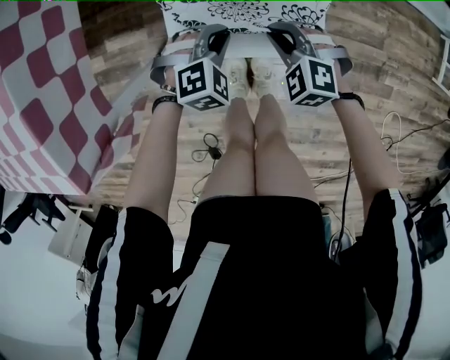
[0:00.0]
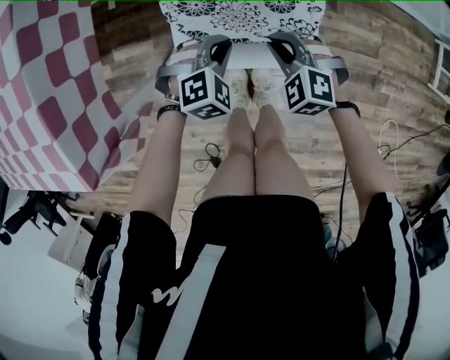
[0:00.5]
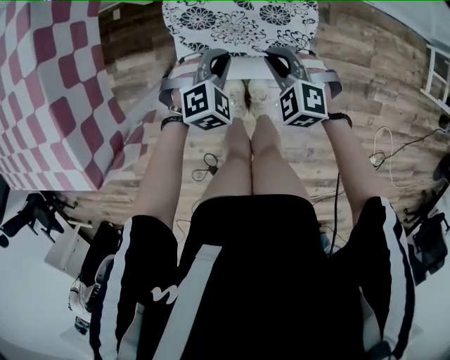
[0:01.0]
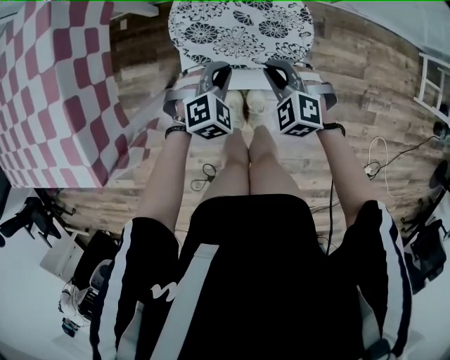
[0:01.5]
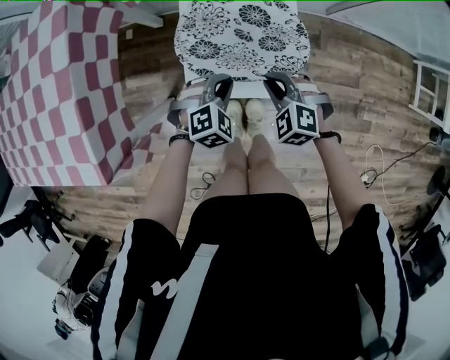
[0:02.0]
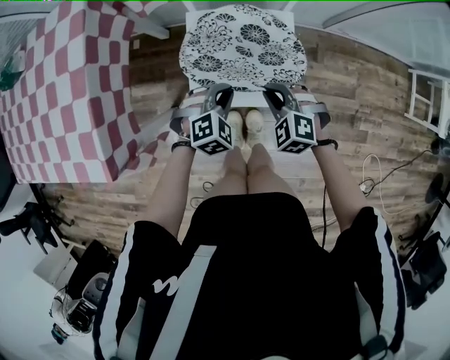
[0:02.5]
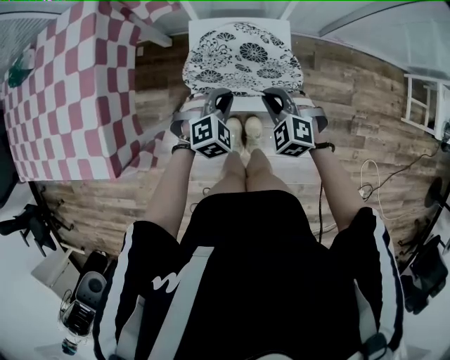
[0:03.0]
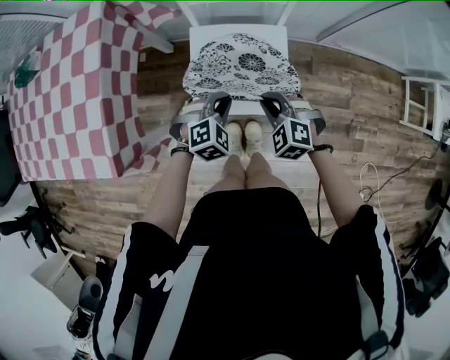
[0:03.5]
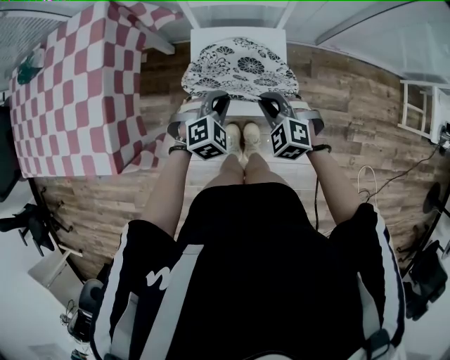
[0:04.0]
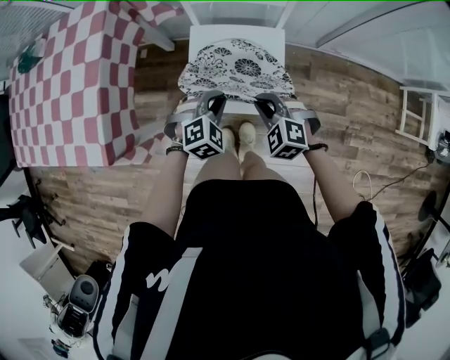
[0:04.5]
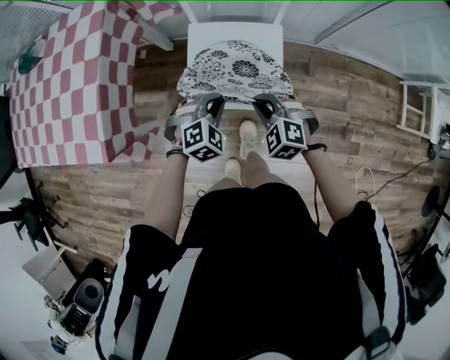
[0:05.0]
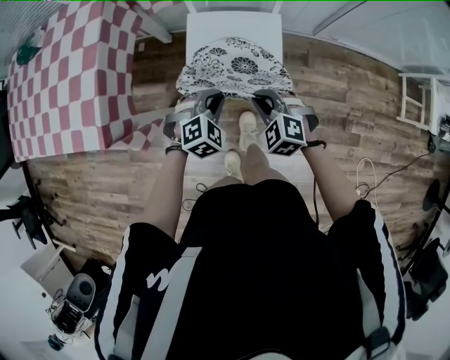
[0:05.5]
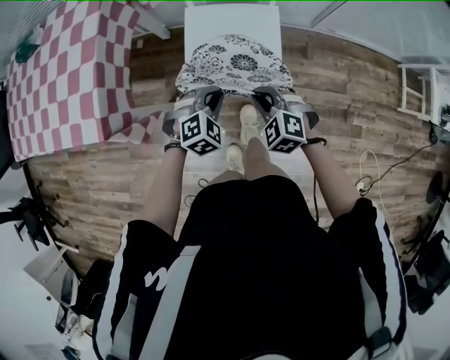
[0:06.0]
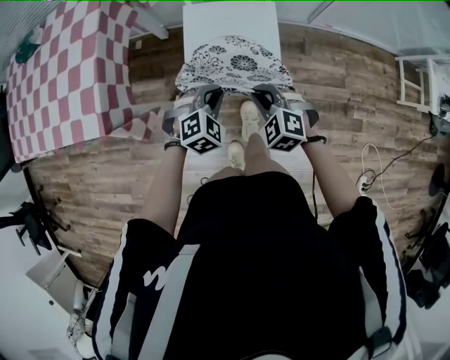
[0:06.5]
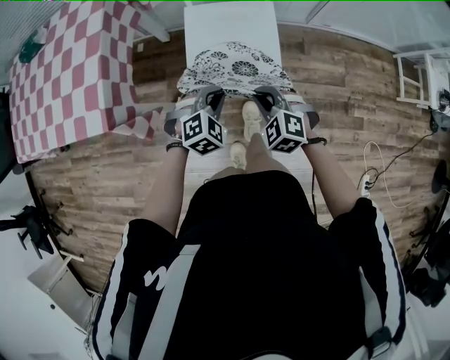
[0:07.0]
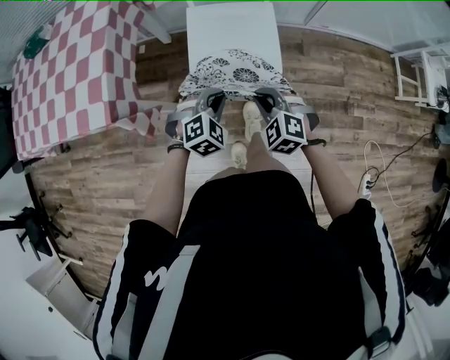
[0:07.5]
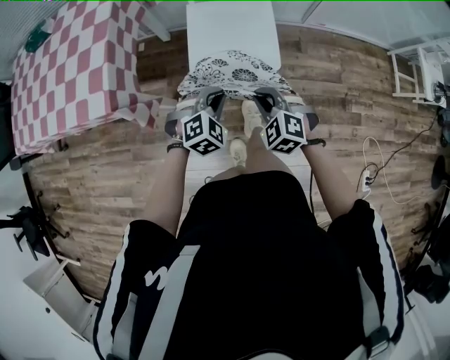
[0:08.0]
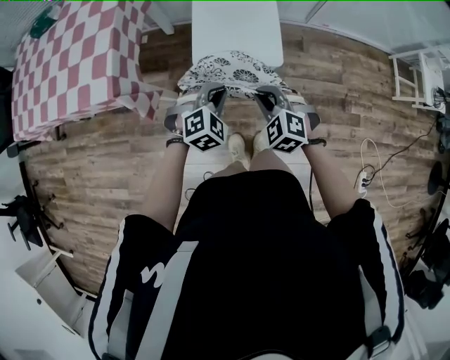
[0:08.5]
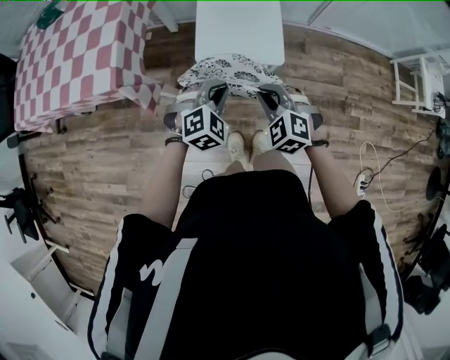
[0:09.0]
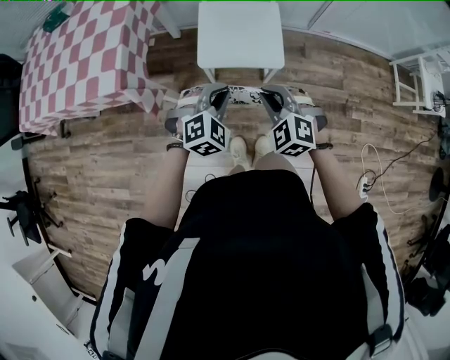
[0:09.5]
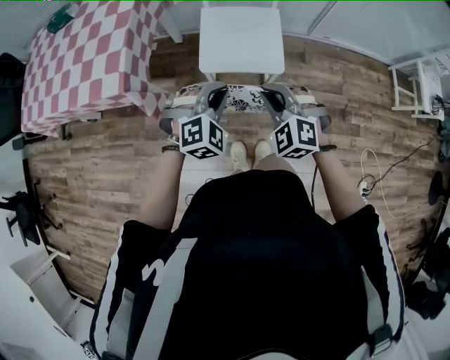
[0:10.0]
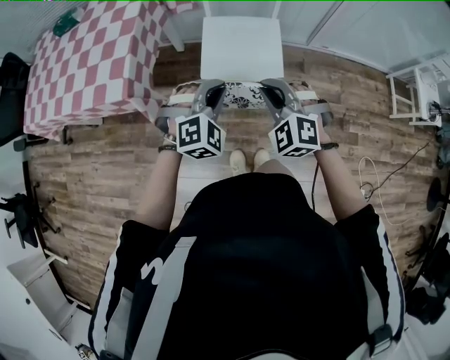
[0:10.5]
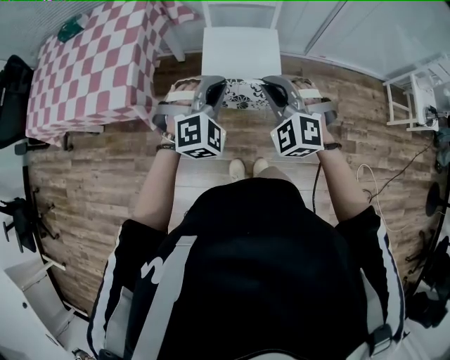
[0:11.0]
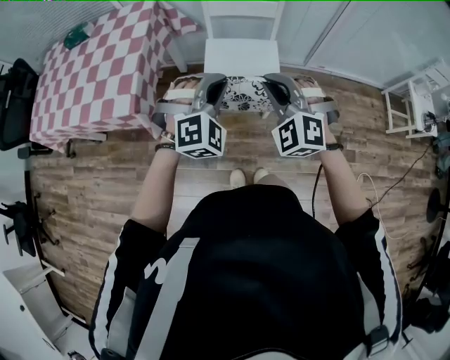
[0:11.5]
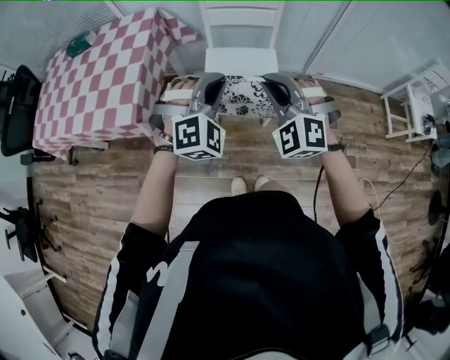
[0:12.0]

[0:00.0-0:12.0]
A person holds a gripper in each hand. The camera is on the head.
0:00.0 to 0:02.0: The two grippers go about 10 cm upward.
0:02.0 to 0:04.0: The grippers both shift upward by approximately 10 cm.
0:04.0 to 0:06.0: The grippers both shift backward by roughly 10 cm.
0:06.0 to 0:08.0: Both grippers travel together backward, roughly 10 cm.
0:08.0 to 0:10.0: The two grippers go approximately 10 cm upward.
0:10.0 to 0:12.0: The two grippers go some 15 cm upward and forward. The right gripper swivels some 20 degrees.

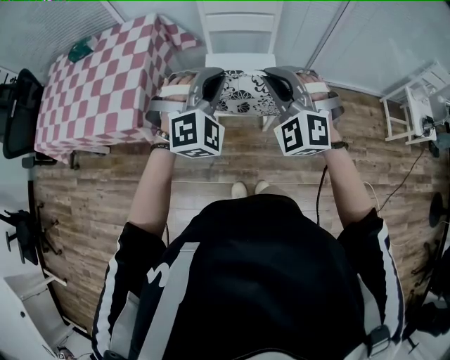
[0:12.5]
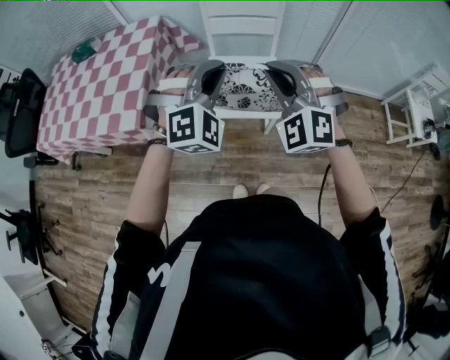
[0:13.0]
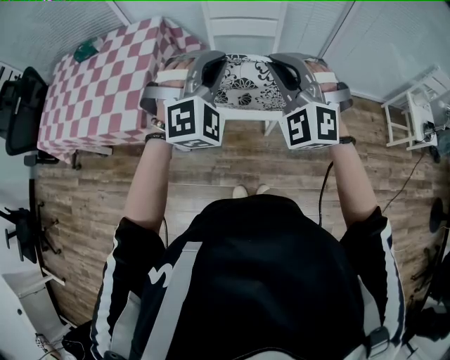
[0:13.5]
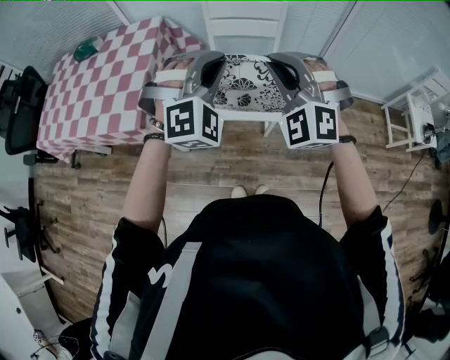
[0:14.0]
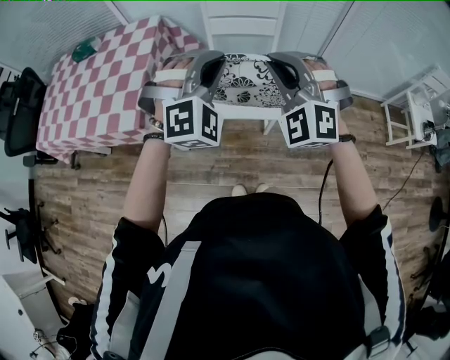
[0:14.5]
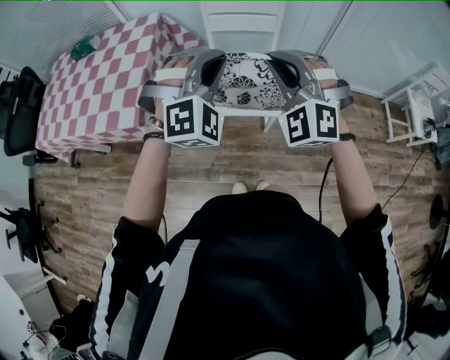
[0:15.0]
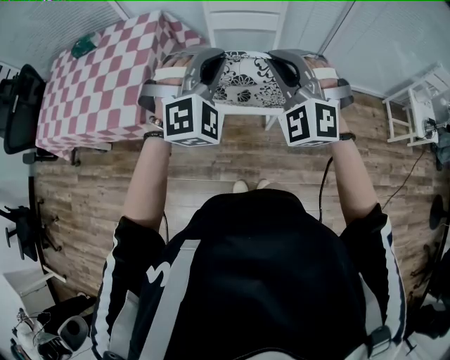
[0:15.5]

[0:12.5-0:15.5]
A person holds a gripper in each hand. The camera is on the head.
0:12.5 to 0:14.0: The two grippers go roughly 5 cm upward.
0:14.0 to 0:15.5: Both grippers stay put.

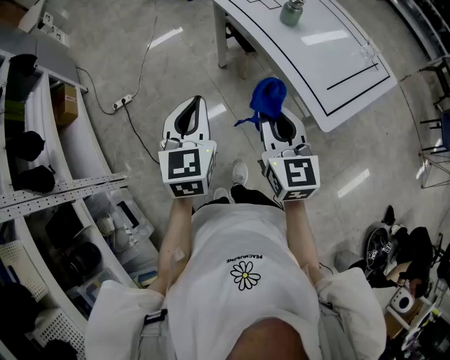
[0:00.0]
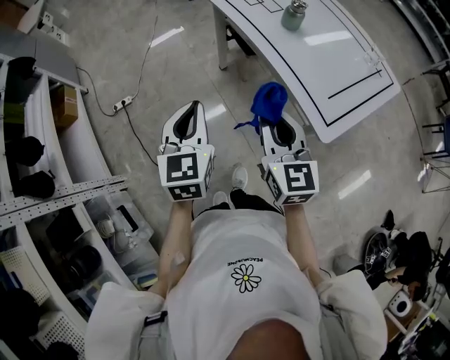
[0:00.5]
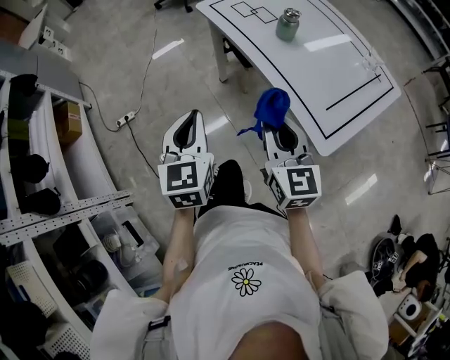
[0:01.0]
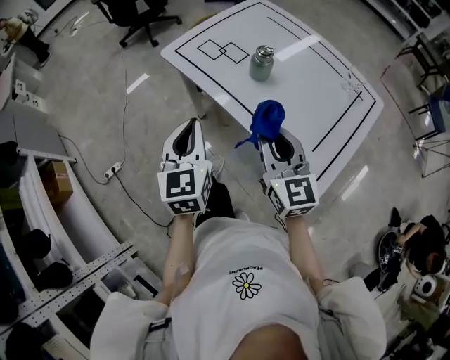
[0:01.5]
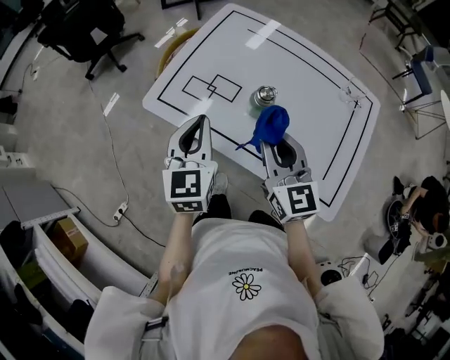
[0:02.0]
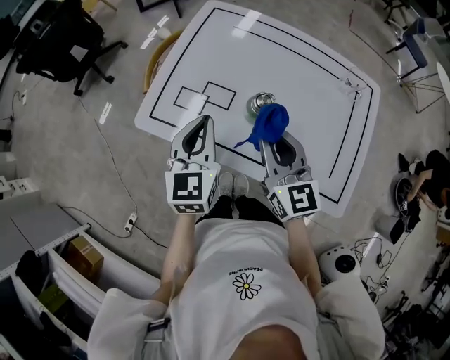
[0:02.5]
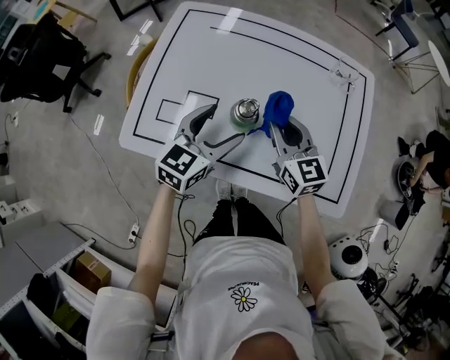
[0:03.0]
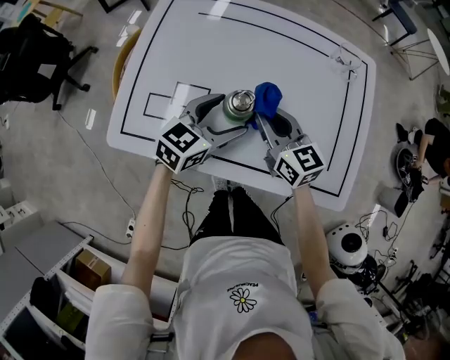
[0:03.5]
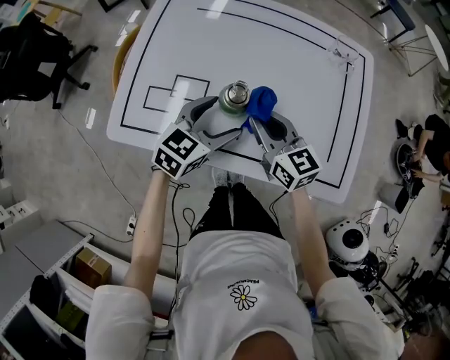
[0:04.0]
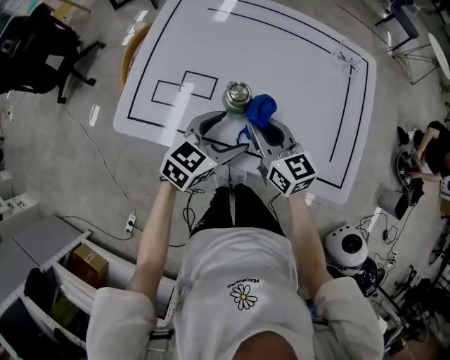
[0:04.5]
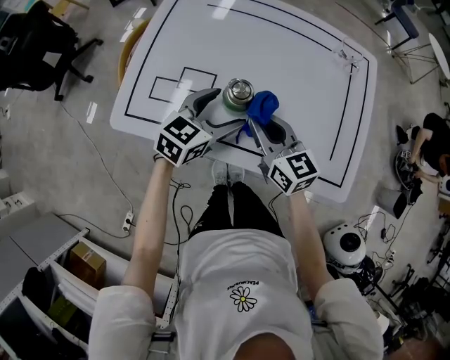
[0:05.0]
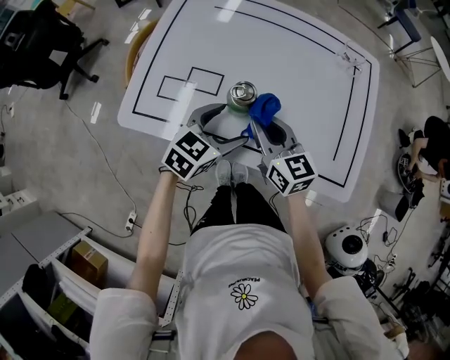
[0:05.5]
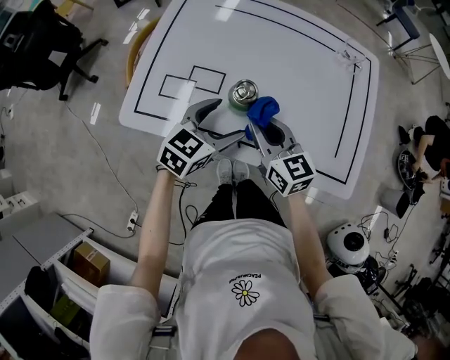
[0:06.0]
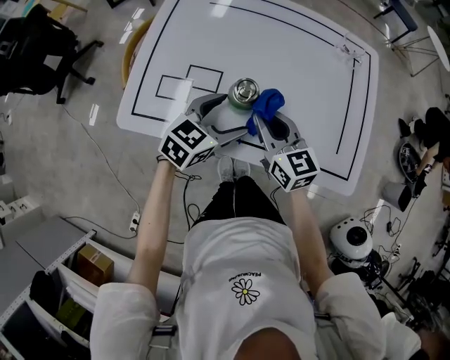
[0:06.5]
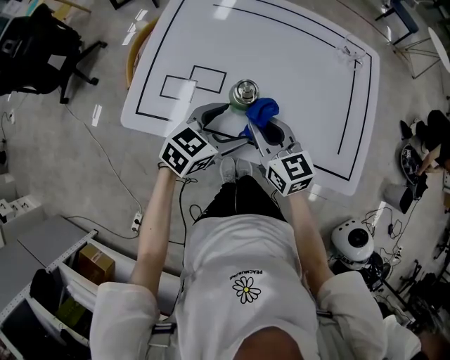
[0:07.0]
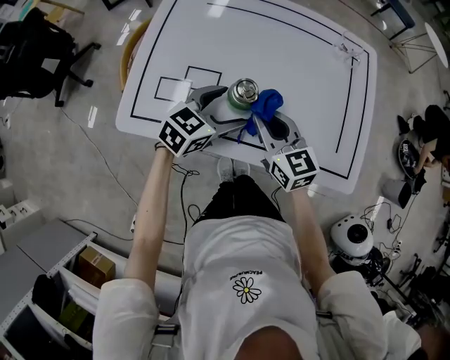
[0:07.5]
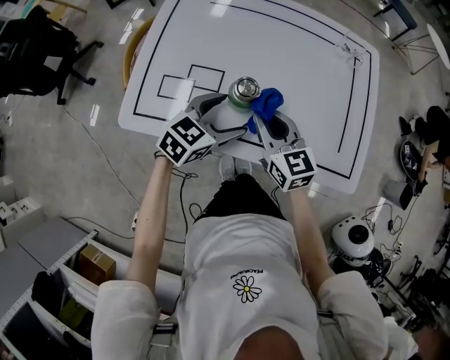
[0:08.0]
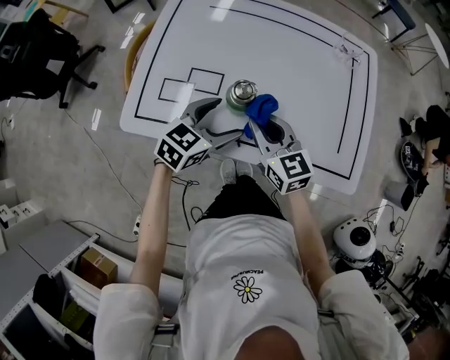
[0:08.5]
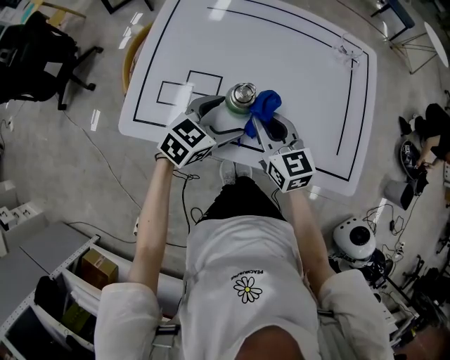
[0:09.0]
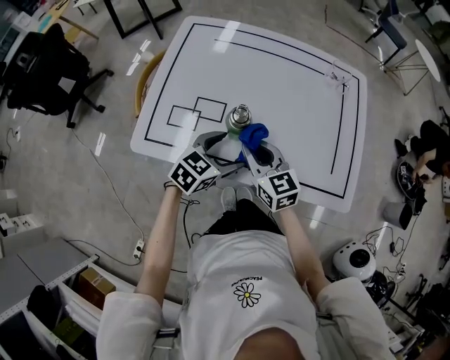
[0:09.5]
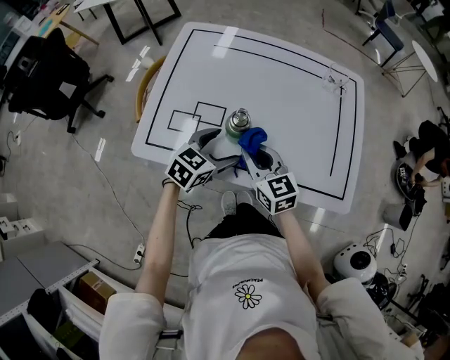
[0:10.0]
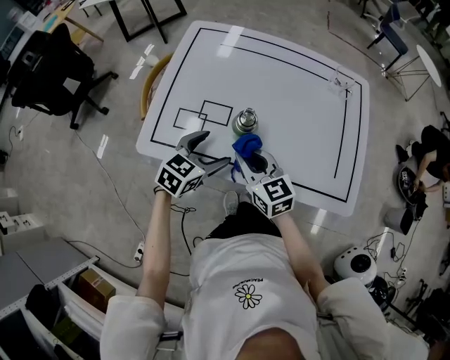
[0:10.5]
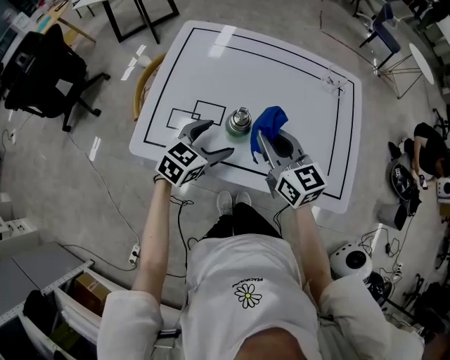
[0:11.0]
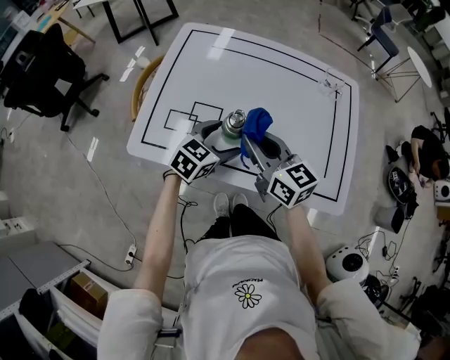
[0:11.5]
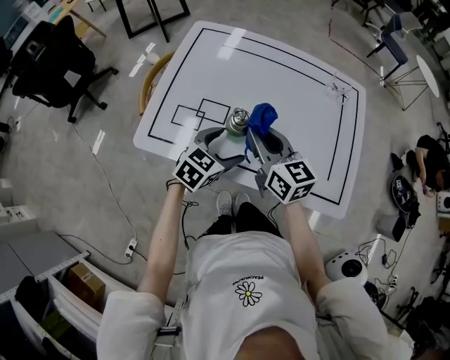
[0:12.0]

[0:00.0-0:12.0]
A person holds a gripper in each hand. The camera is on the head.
0:00.0 to 0:02.0: The left gripper changes place by about 40 cm, and rotates approximately 30 degrees. The right gripper shifts by roughly 35 cm, and turns by some 20 degrees.
0:02.0 to 0:04.0: The left gripper moves about 20 cm, swivels about 60 degrees, and opens up; the right gripper heads downward, covering about 15 cm.
0:04.0 to 0:06.0: The left gripper goes forward and backward, roughly 5 cm each way, reversing 2 times. Meanwhile the right gripper changes place by roughly 5 cm.
0:06.0 to 0:10.0: The grippers make only small movements.
0:10.0 to 0:12.0: The right gripper moves upward, approximately 5 cm.
